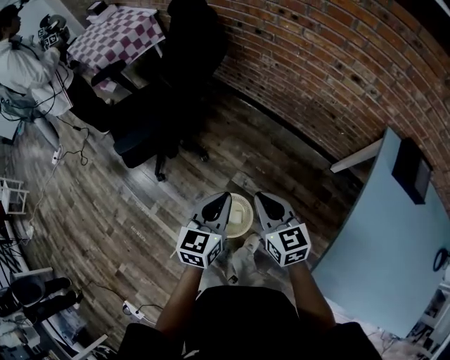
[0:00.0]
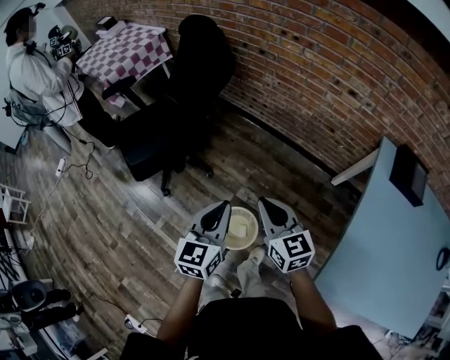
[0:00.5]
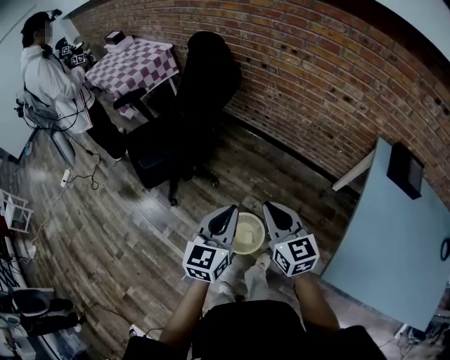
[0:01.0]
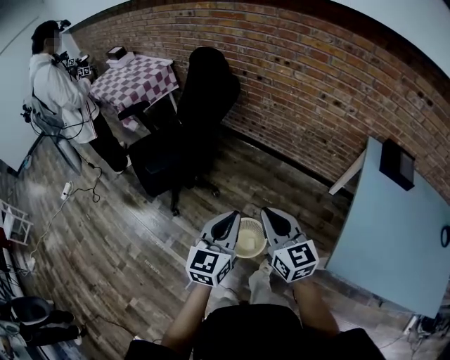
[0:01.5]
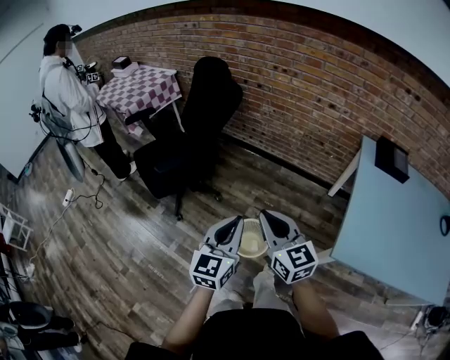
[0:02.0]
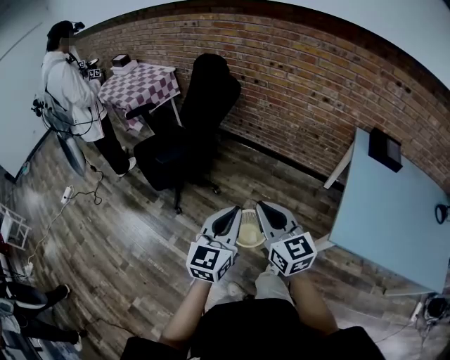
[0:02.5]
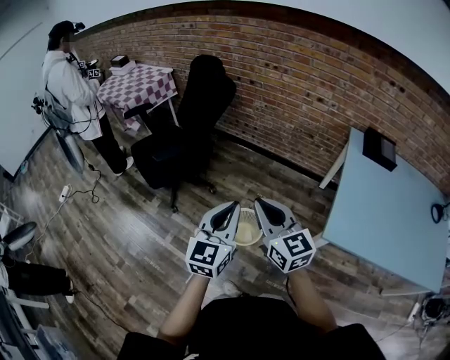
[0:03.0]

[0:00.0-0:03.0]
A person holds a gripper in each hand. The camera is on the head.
0:00.0 to 0:01.5: The left gripper heads backward, upward and to the left, covering approximately 20 cm. The right gripper moves upward, backward and to the left, some 20 cm.
0:01.5 to 0:03.0: The grippers both shift backward by roughly 15 cm.

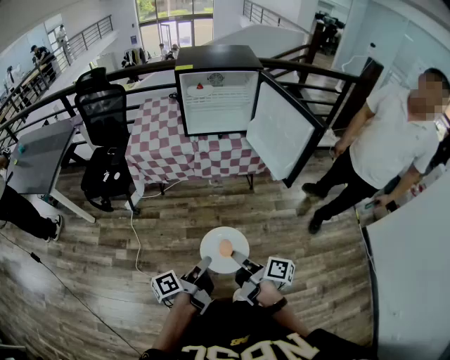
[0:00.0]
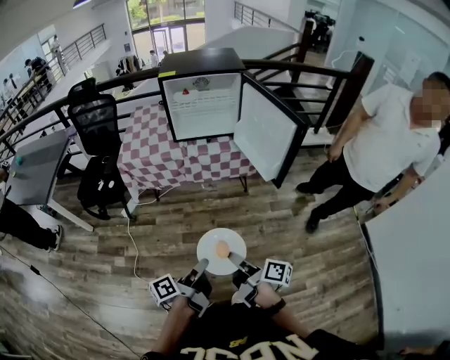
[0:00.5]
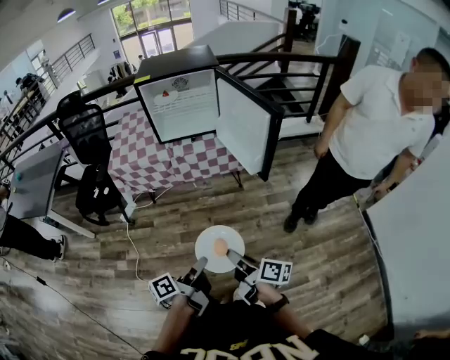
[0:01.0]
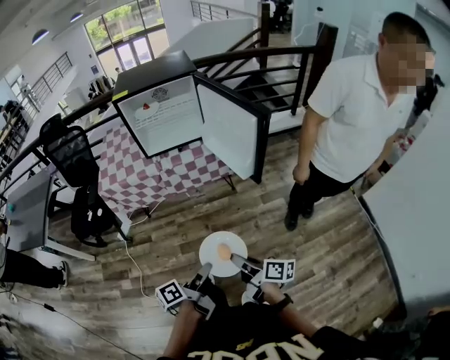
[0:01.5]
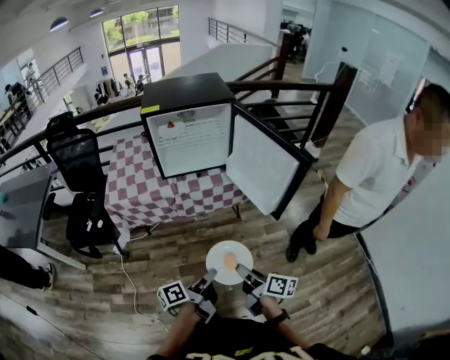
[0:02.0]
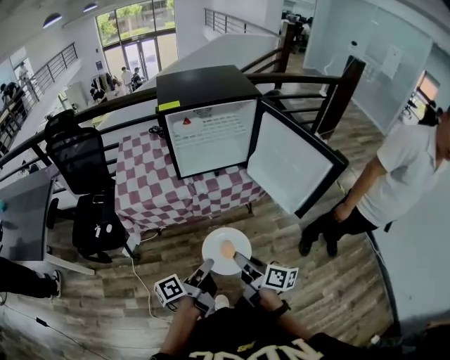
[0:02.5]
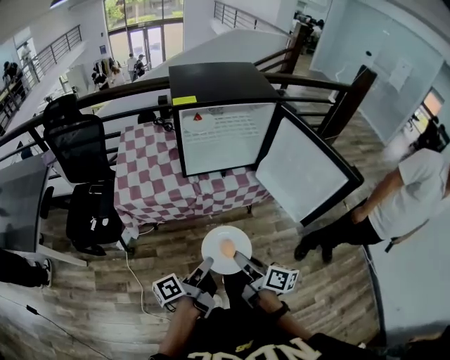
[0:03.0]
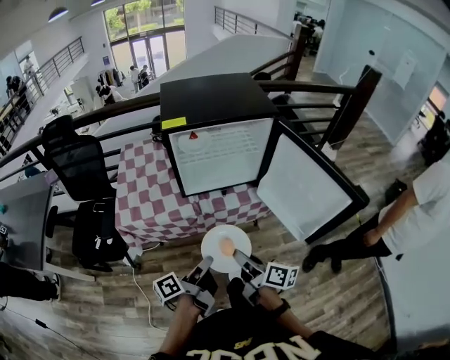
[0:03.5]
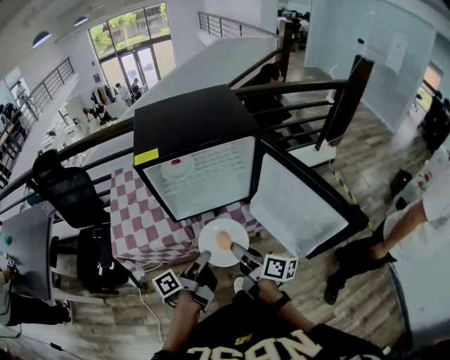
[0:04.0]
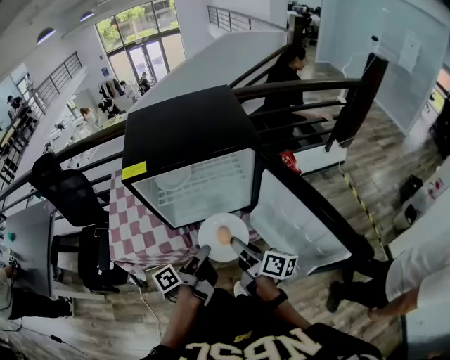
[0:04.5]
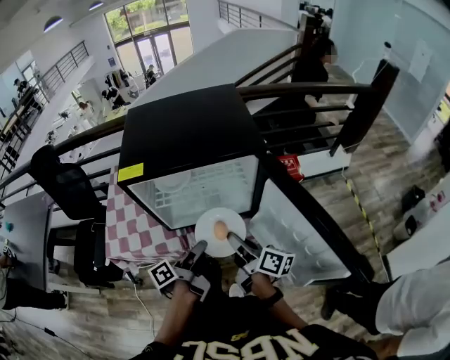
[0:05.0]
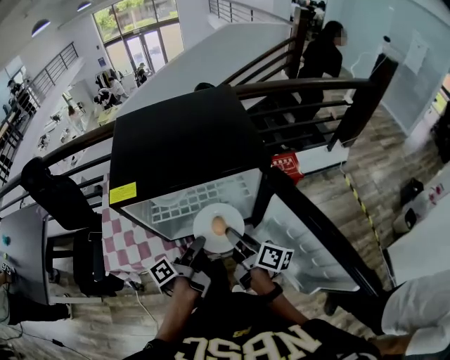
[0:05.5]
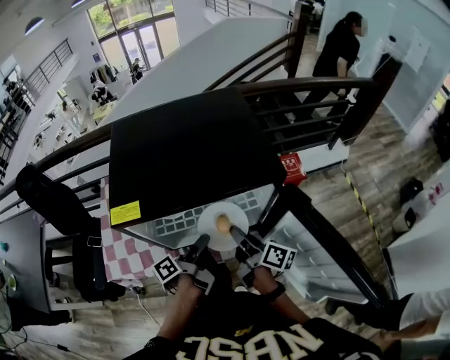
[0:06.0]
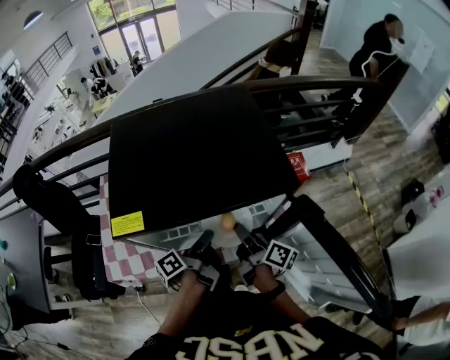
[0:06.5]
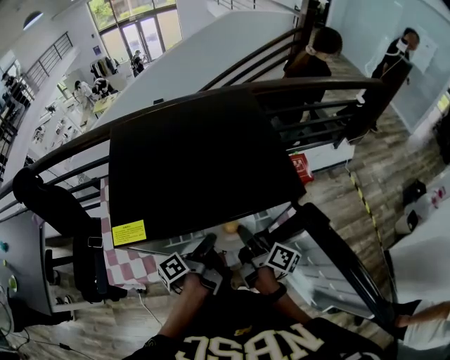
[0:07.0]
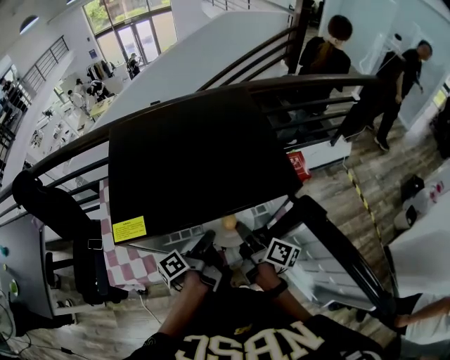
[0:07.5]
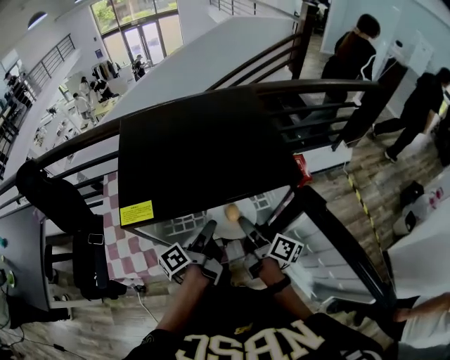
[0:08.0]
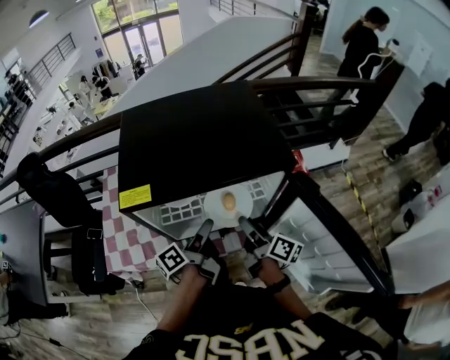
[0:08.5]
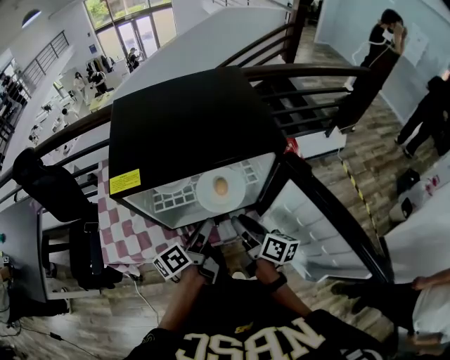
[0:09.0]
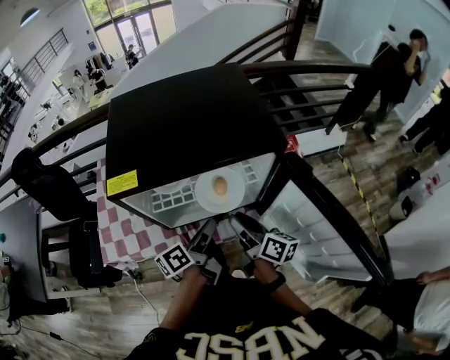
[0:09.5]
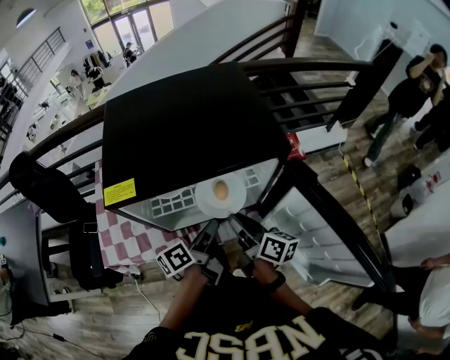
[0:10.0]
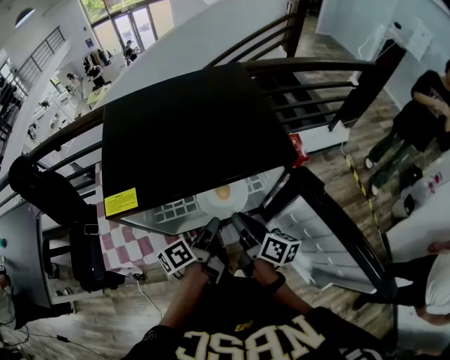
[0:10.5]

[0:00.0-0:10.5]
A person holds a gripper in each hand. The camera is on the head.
0:00.0 to 0:02.0: The right gripper changes place by some 15 cm.
0:02.0 to 0:04.0: The right gripper ends up about 35 cm from where it was.
0:04.0 to 0:06.5: The right gripper moves about 25 cm.
0:06.5 to 0:08.5: The right gripper opens.
0:08.5 to 0:10.5: The right gripper closes its fingers.

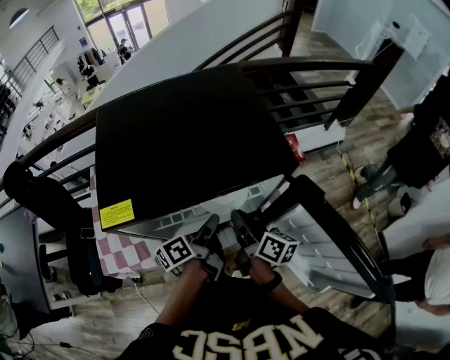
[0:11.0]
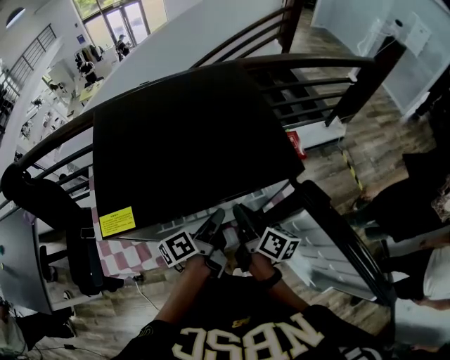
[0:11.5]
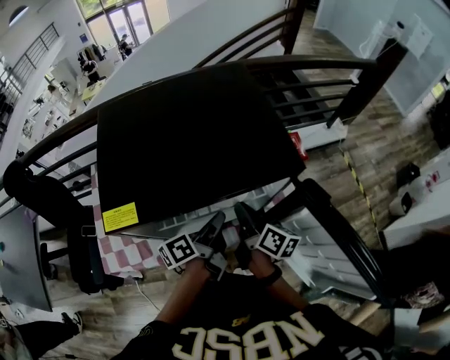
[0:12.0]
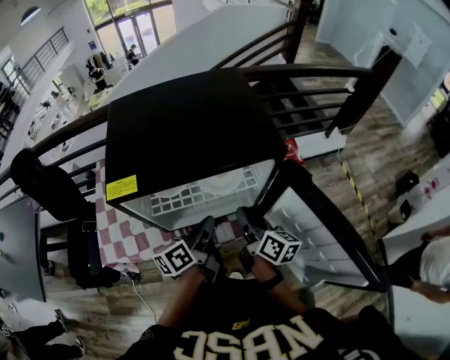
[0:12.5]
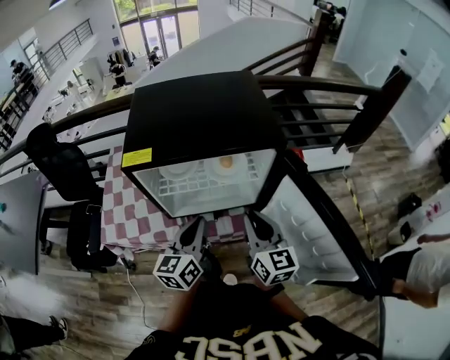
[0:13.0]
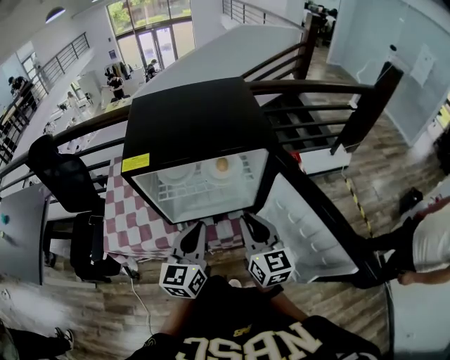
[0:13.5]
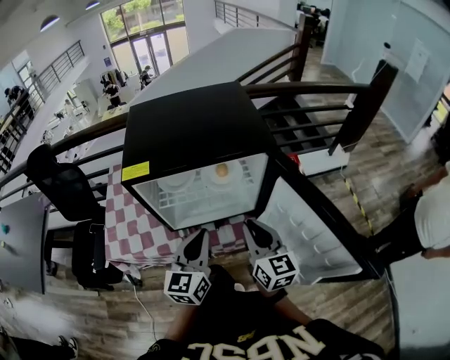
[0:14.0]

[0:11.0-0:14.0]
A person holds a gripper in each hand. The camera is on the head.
0:12.5 to 0:14.0: The right gripper moves approximately 10 cm, and rotates some 40 degrees.

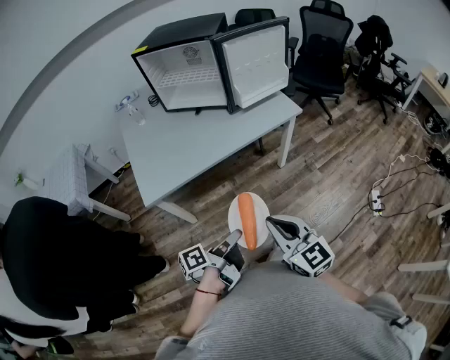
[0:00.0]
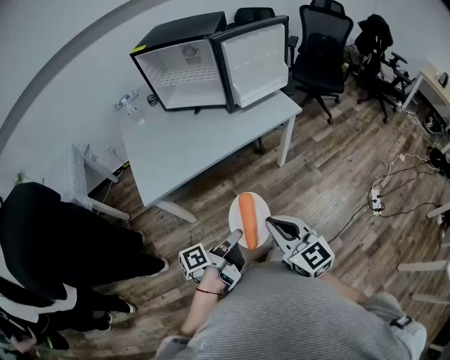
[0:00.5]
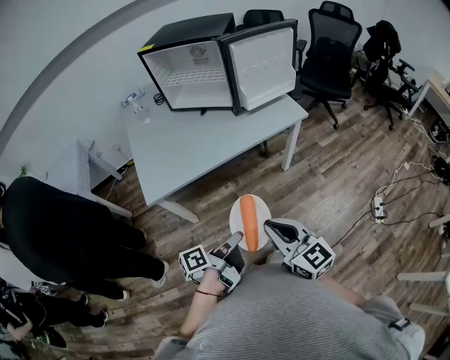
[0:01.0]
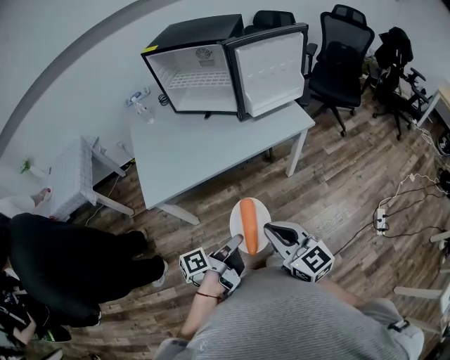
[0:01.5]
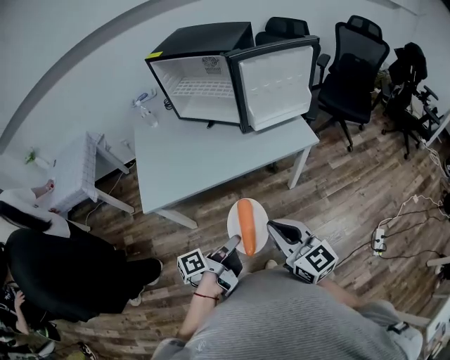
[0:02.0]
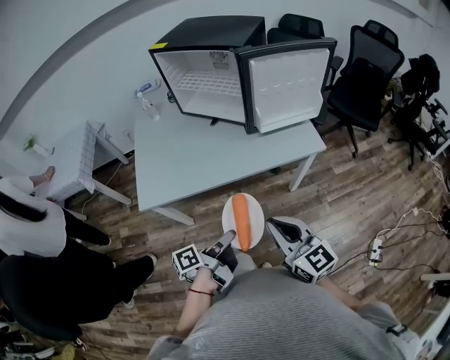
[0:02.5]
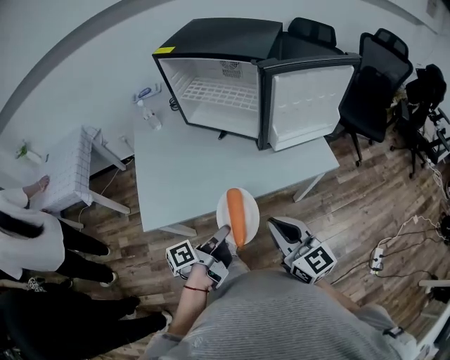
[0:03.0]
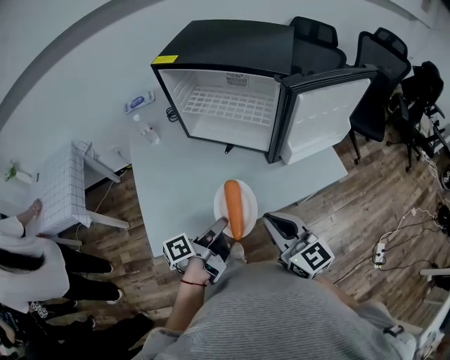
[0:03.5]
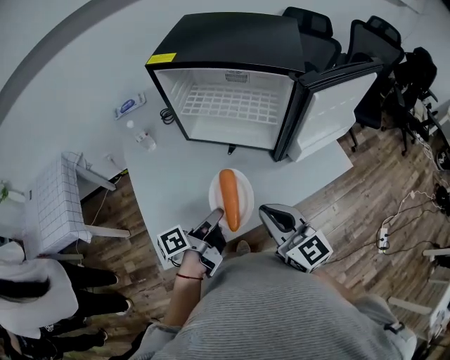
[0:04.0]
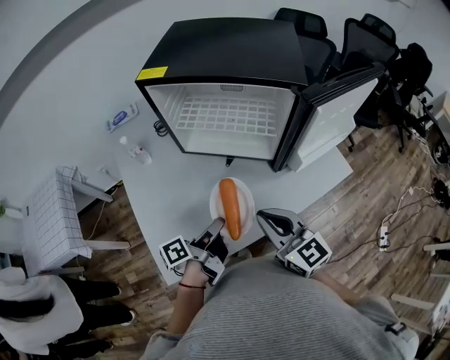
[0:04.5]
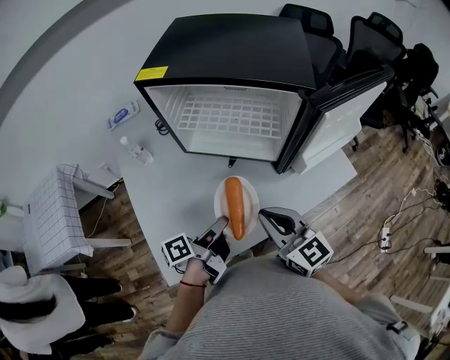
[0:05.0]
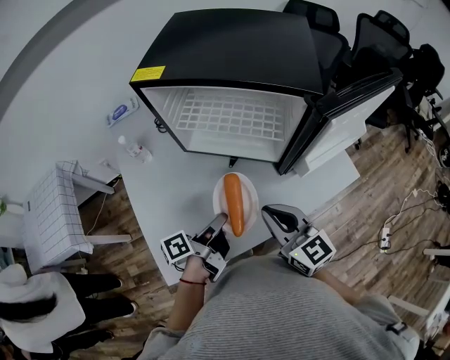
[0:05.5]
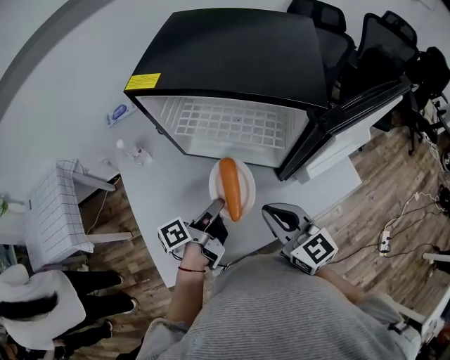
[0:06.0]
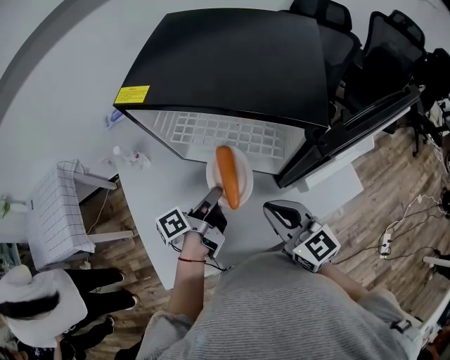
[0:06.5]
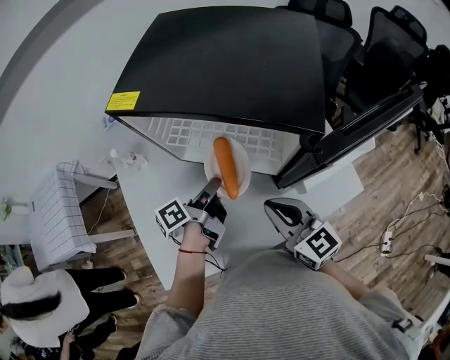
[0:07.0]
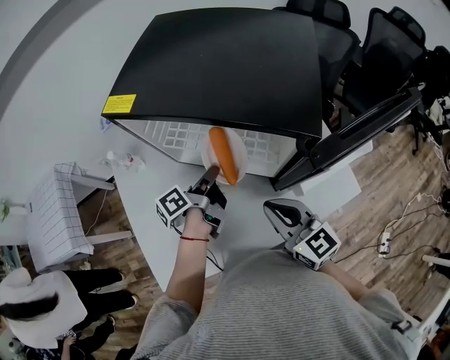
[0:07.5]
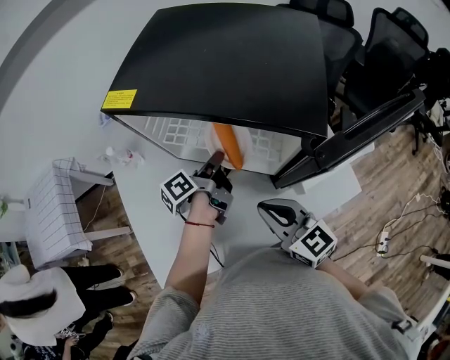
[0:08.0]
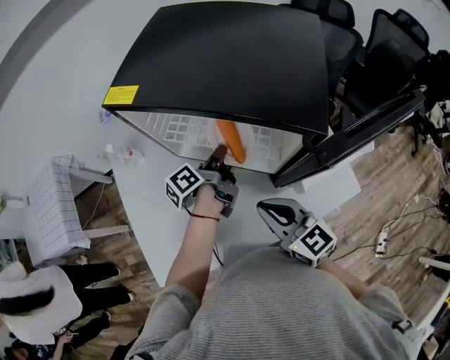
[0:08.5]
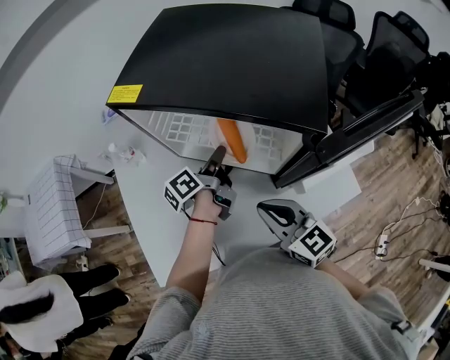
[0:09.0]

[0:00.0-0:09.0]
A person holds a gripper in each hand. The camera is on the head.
0:00.0 to 0:02.0: The right gripper changes place by approximately 15 cm.
0:02.0 to 0:04.5: The right gripper moves some 40 cm.
0:04.5 to 0:07.0: The right gripper shifts by about 15 cm.

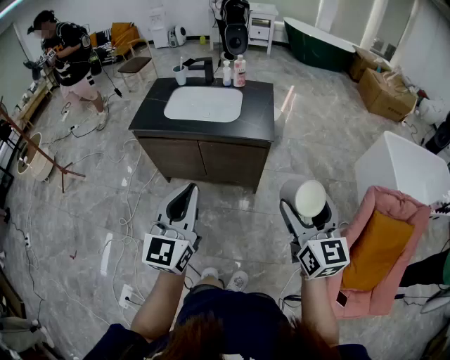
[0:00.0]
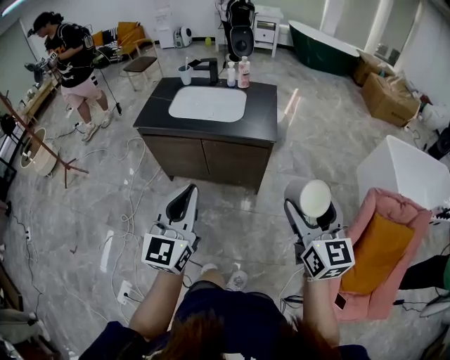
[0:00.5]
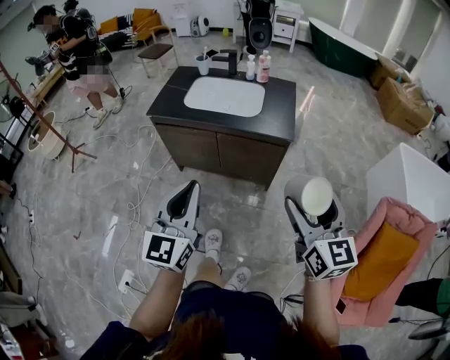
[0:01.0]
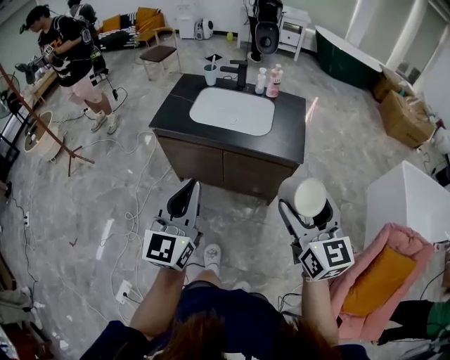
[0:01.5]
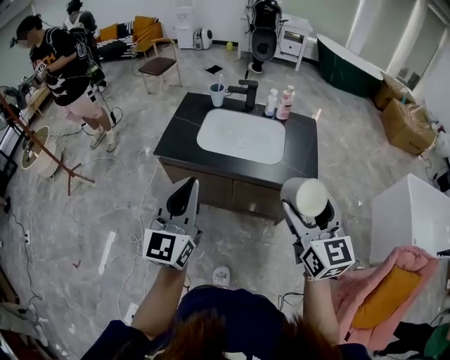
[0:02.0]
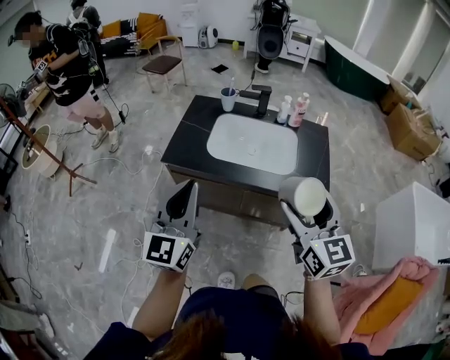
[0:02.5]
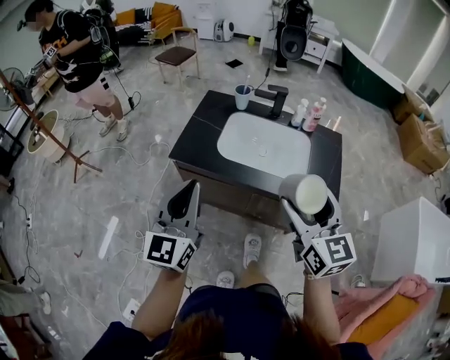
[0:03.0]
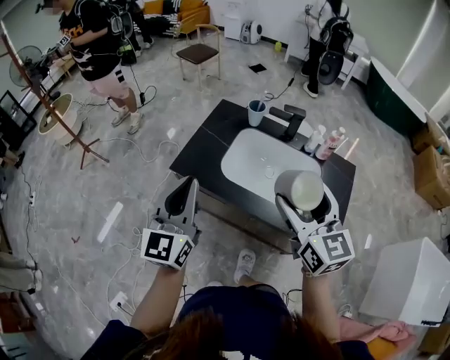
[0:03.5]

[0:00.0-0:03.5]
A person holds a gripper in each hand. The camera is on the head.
0:00.0 to 0:02.0: The two grippers go some 35 cm forward and to the left.
0:02.0 to 0:03.5: The two grippers go some 25 cm forward.
